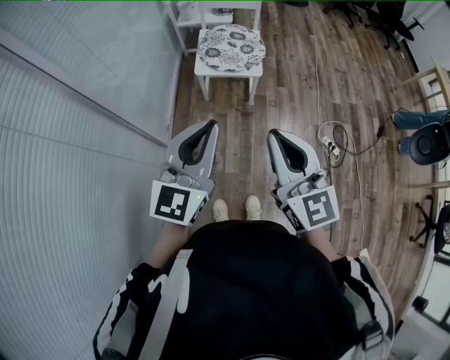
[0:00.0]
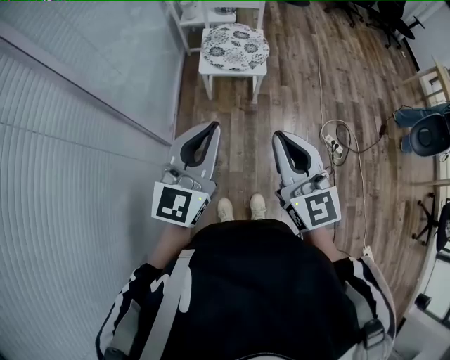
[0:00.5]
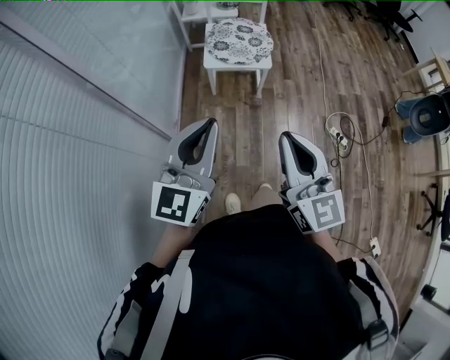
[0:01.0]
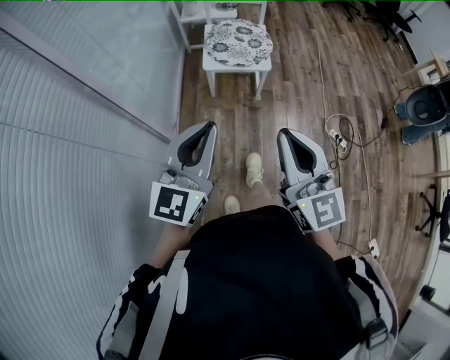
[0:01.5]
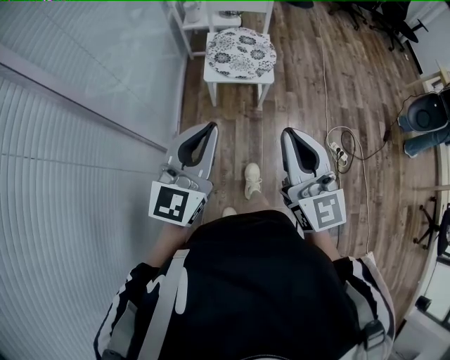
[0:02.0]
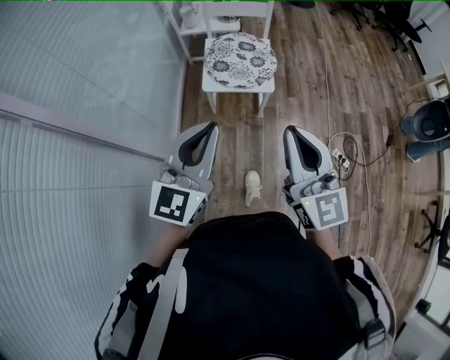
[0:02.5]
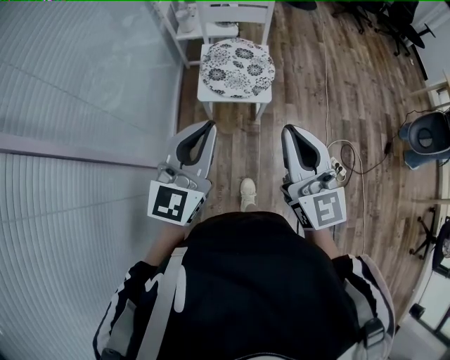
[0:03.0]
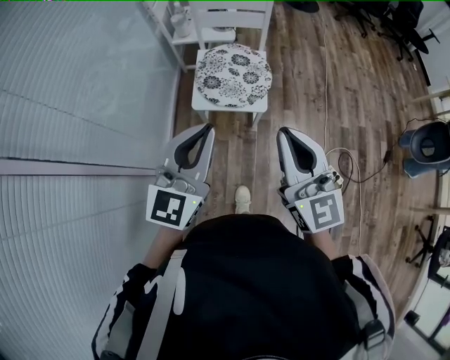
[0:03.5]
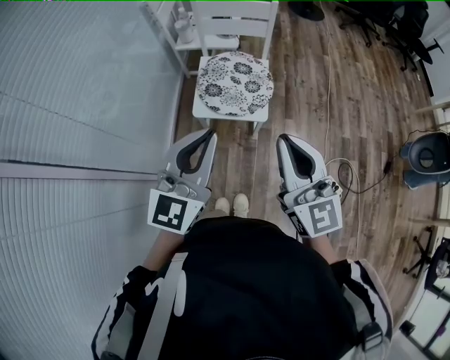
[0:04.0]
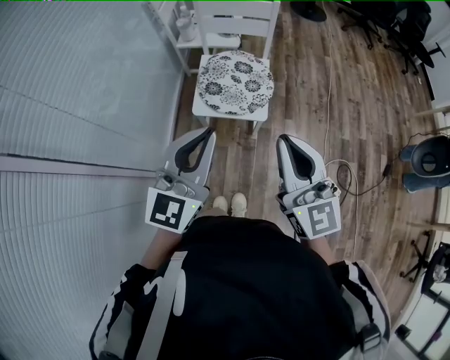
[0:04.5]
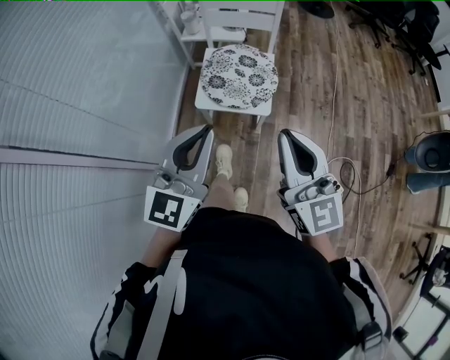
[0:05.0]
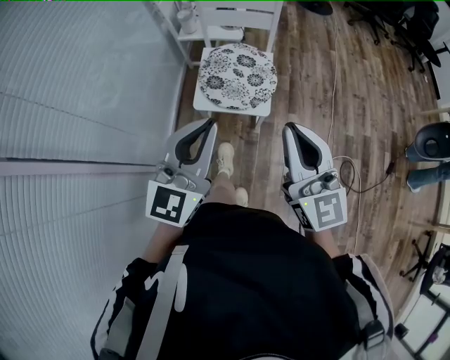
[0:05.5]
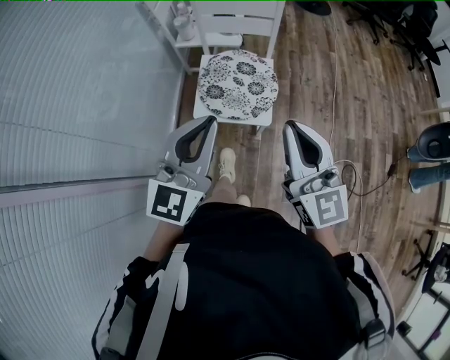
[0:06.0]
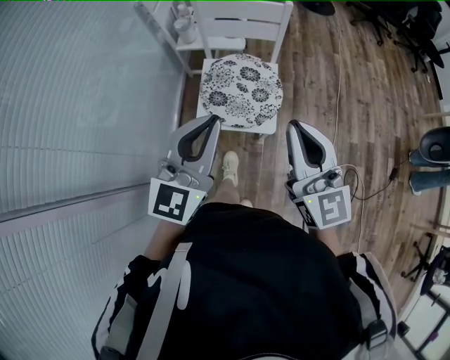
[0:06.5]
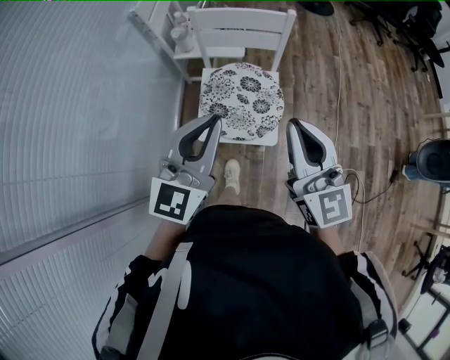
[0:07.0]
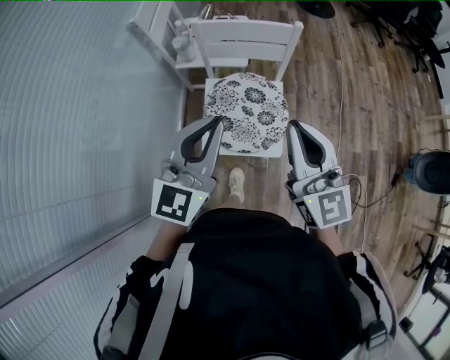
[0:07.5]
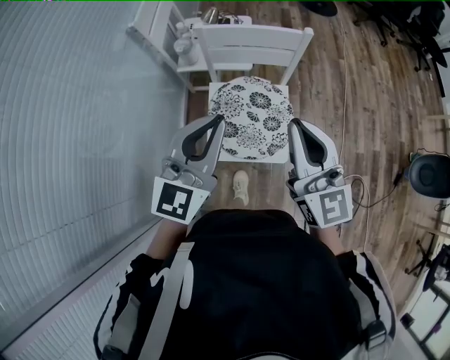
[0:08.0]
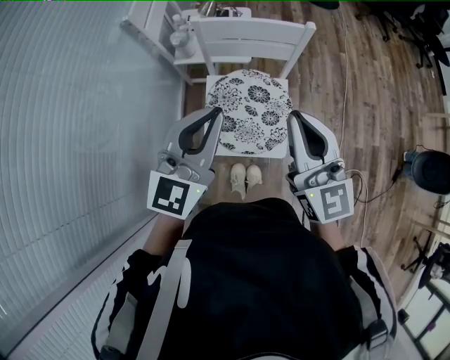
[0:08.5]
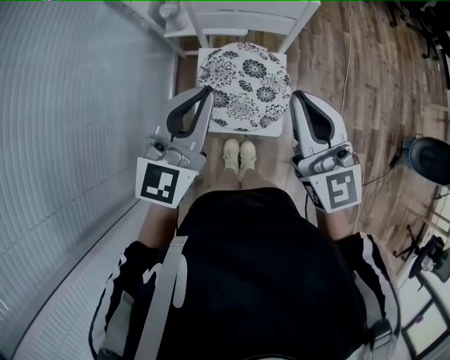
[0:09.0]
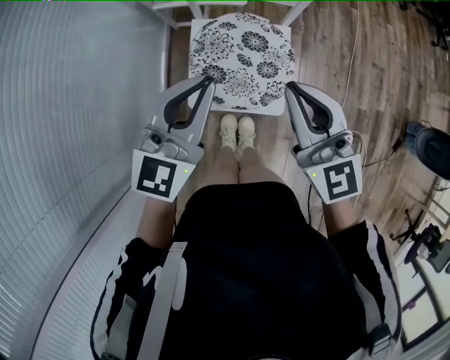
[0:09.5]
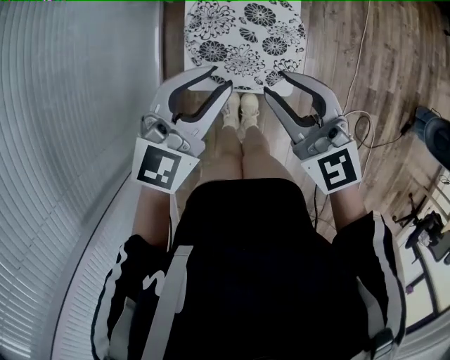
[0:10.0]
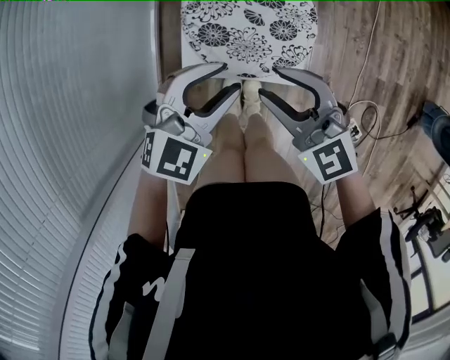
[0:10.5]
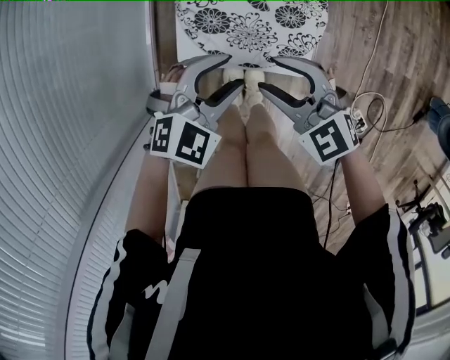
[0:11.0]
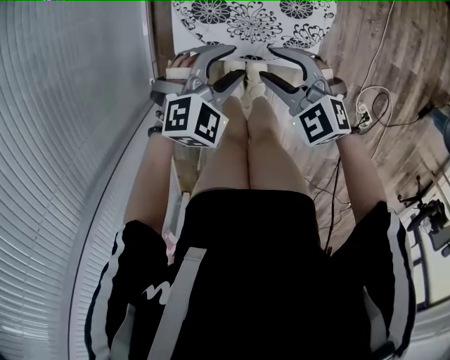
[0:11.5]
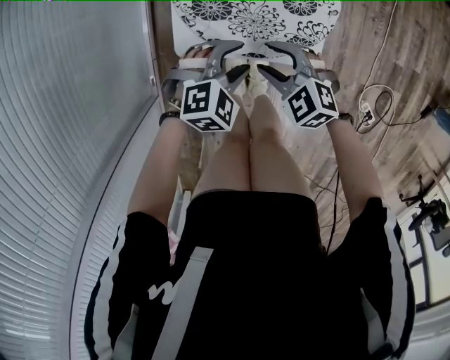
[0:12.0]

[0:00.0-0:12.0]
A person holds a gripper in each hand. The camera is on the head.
0:00.0 to 0:02.0: The right gripper shifts roughly 5 cm forward, while the left gripper goes some 10 cm to the left and forward.
0:02.0 to 0:04.0: Both grippers travel together forward, about 20 cm.
0:04.0 to 0:06.0: The grippers both shift forward by approximately 10 cm.
0:06.0 to 0:08.0: Both grippers move forward, roughly 25 cm.
0:08.0 to 0:10.0: The two grippers go approximately 20 cm downward. The left gripper swivels roughly 20 degrees, and opens up, while the right gripper swivels some 30 degrees, and opens up.
0:10.0 to 0:12.0: Both grippers travel together downward, roughly 35 cm. The left gripper points its fingers approximately 40 degrees further downward, and opens; the right gripper tips its fingers downward by about 30 degrees, and opens its fingers.

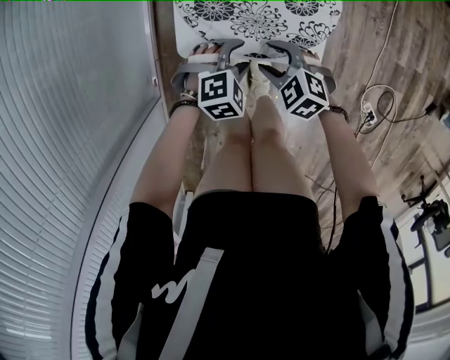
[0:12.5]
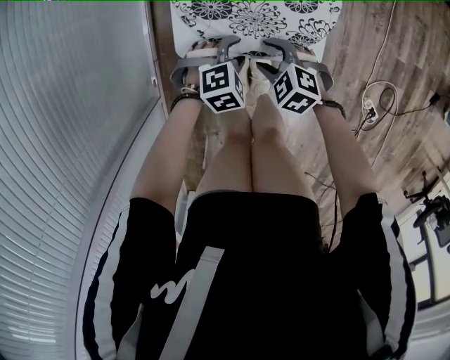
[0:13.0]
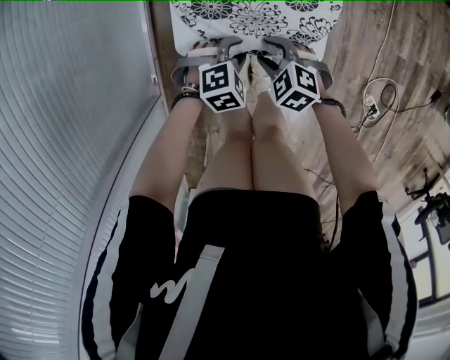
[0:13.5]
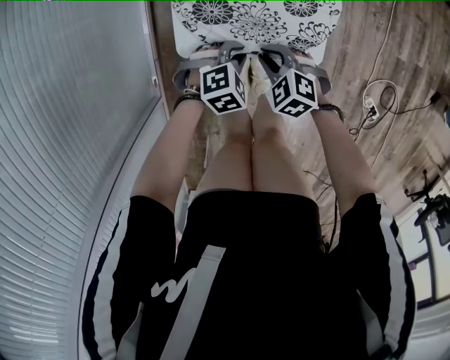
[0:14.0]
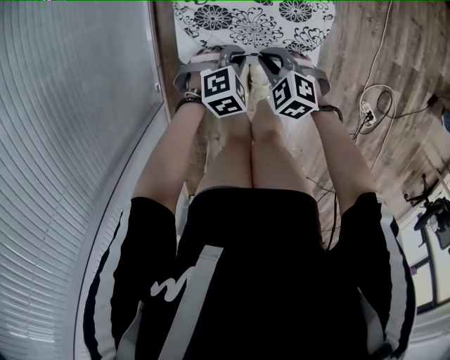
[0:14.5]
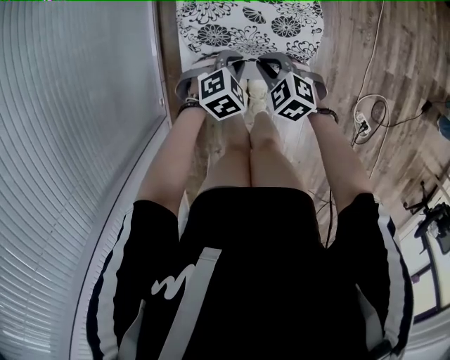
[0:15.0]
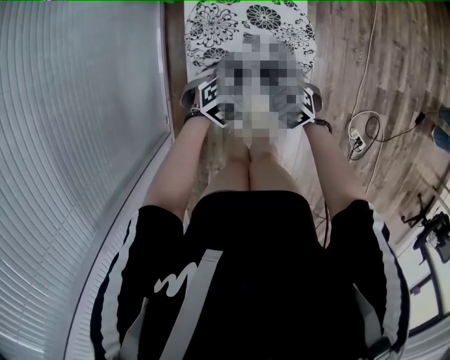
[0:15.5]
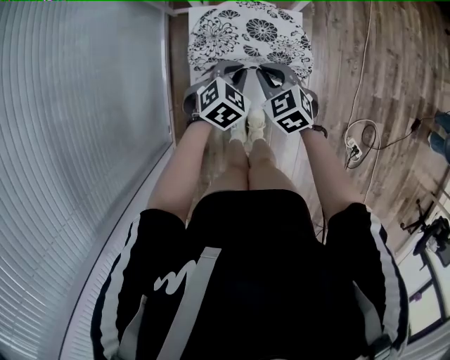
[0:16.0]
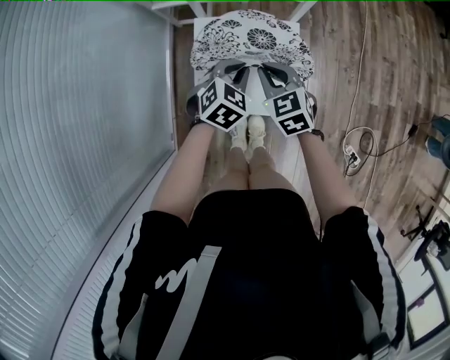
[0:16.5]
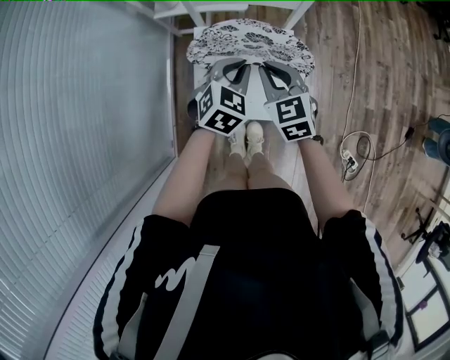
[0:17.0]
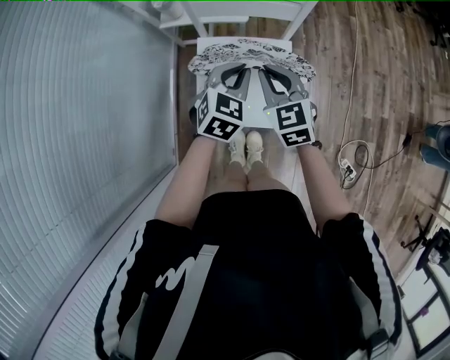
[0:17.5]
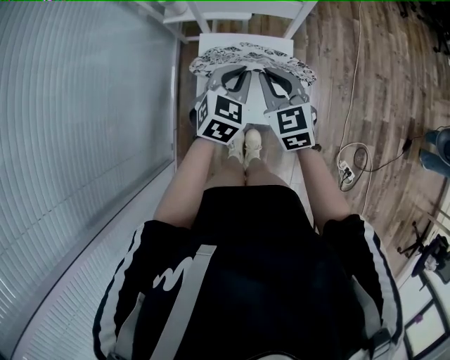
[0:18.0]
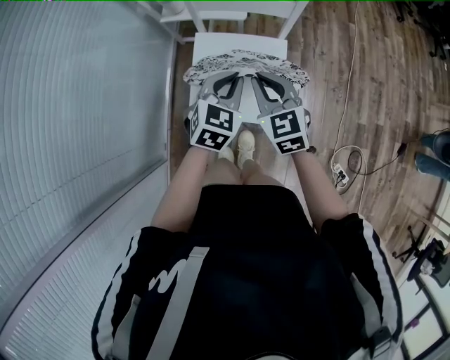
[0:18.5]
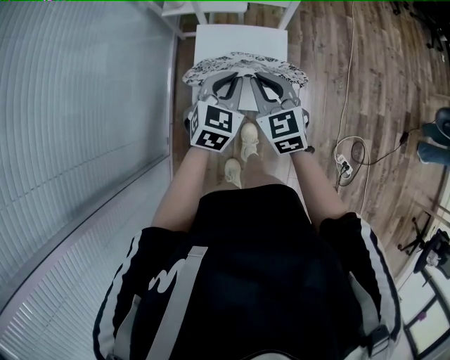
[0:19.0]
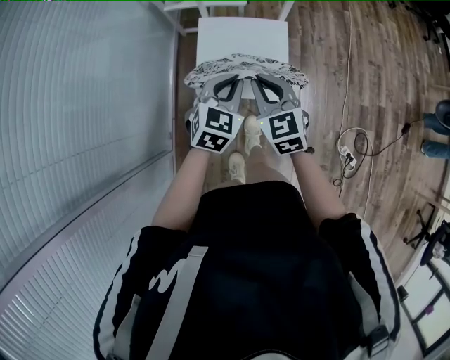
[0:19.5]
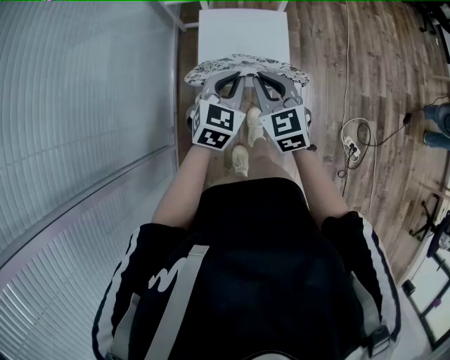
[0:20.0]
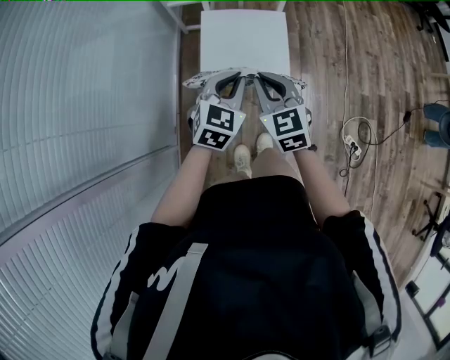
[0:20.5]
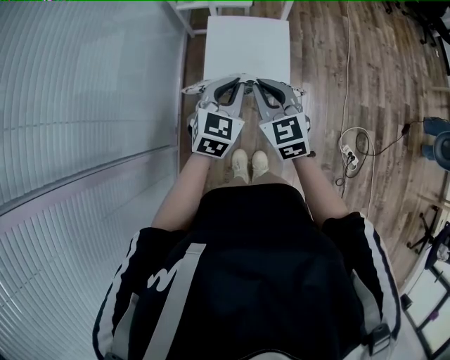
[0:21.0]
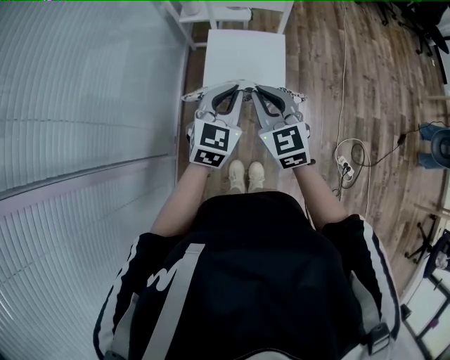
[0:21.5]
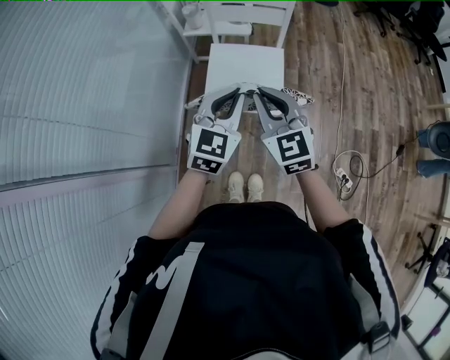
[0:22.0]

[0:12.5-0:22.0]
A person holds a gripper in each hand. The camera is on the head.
0:12.5 to 0:14.5: The right gripper closes its fingers. The left gripper closes.
0:14.5 to 0:16.5: The two grippers go about 20 cm upward. The right gripper turns by some 30 degrees. The left gripper rotates approximately 30 degrees.
0:16.5 to 0:18.0: The grippers both shift upward by approximately 10 cm.
0:18.0 to 0:20.0: The grippers both shift backward by approximately 20 cm.
0:20.0 to 0:22.0: Both grippers move upward, roughly 15 cm.

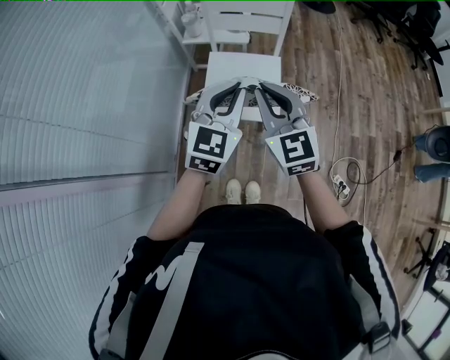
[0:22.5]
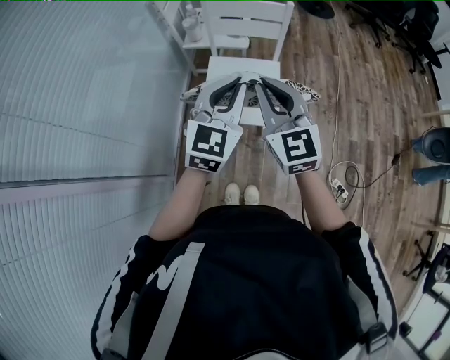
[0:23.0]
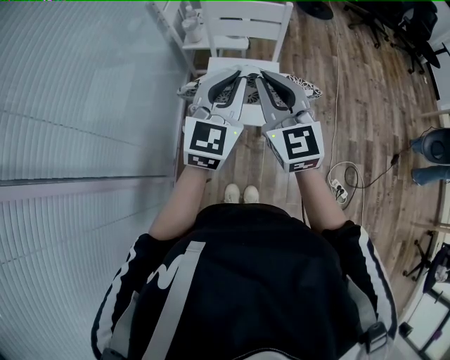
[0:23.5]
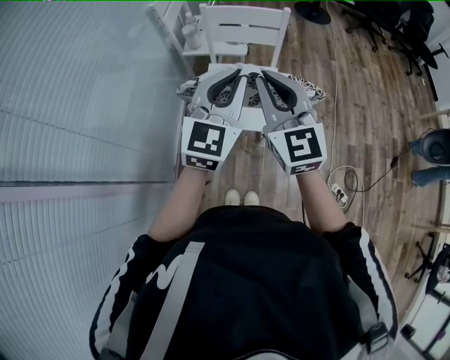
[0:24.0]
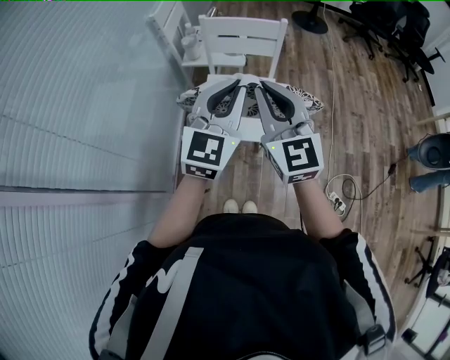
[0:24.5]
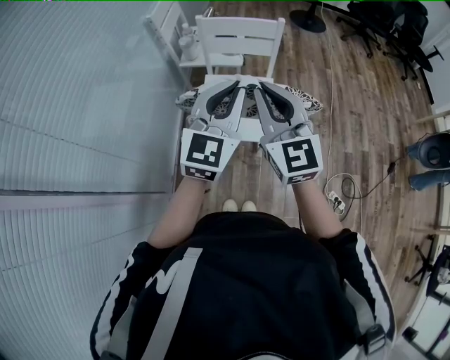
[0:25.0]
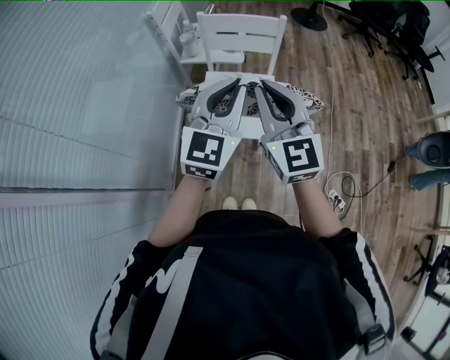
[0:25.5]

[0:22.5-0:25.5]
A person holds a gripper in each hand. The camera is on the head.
0:22.5 to 0:24.0: The two grippers go roughly 10 cm upward.
0:24.0 to 0:25.5: The two grippers keep their place.

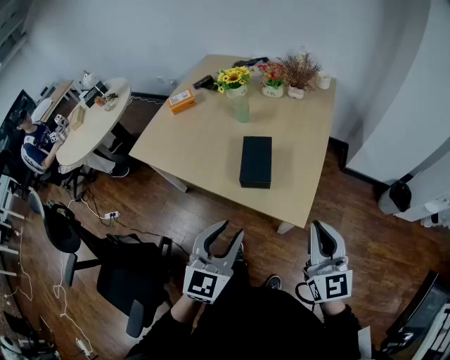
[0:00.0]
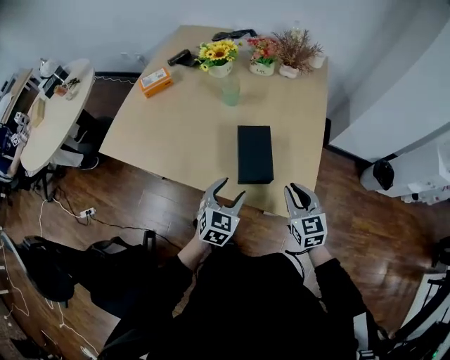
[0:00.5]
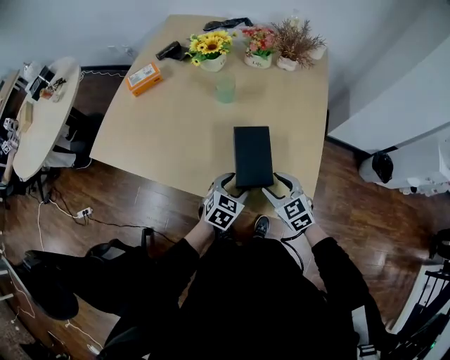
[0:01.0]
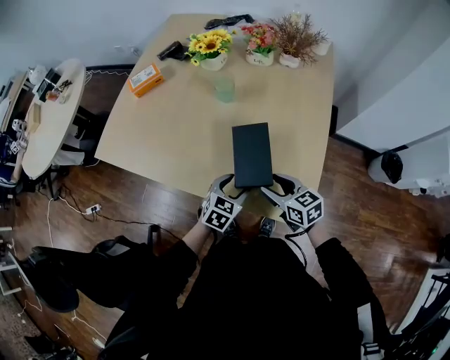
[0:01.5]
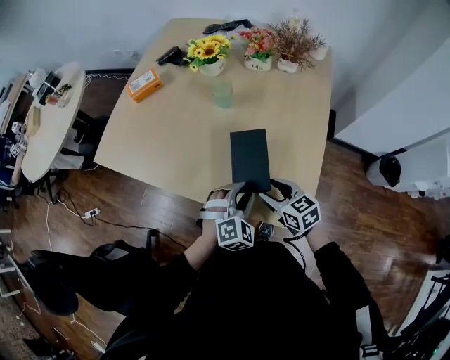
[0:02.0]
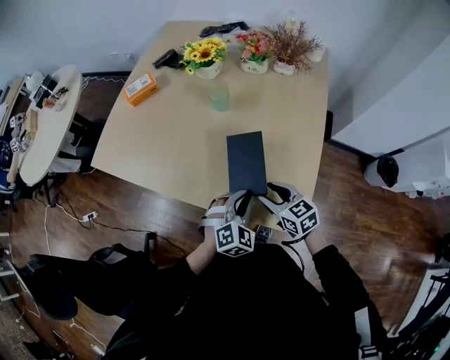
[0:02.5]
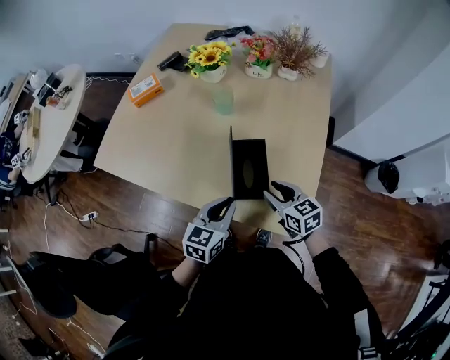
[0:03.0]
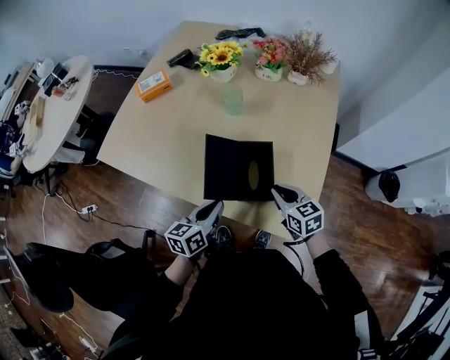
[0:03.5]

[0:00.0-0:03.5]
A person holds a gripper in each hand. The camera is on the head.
0:00.0 to 0:02.0: The left gripper shifts approximately 30 cm forward and downward, twists approximately 40 degrees clockwise, seen from behind, and opens, then closes once more; the right gripper travels downward, forward and to the left by some 35 cm, angles its fingers downward, by roughly 30 degrees, and opens.
0:02.0 to 0:03.5: The left gripper travels to the left by some 10 cm, rolls counterclockwise, seen from behind, by approximately 80 degrees, and closes its fingers. Meanwhile the right gripper closes its fingers.
